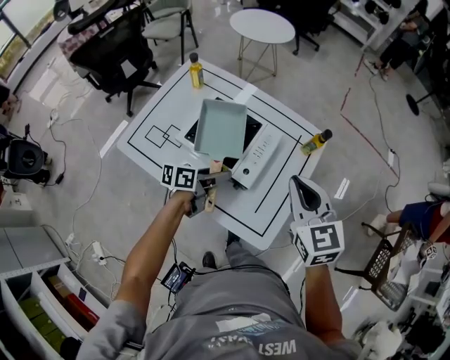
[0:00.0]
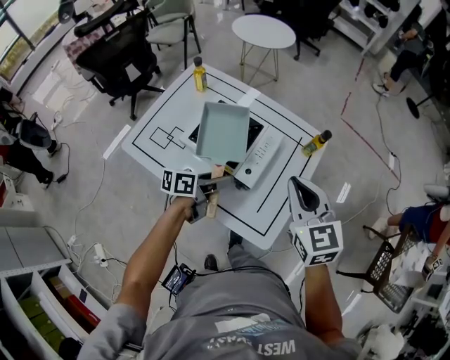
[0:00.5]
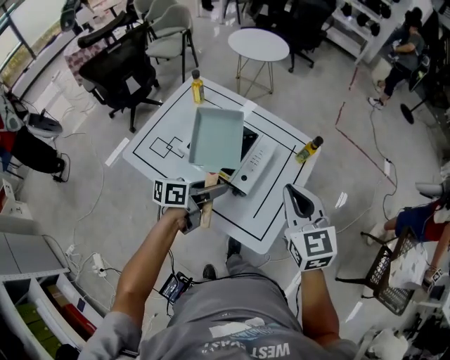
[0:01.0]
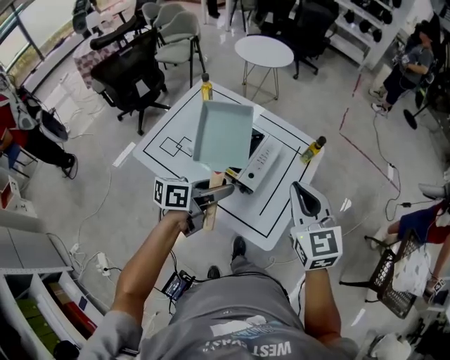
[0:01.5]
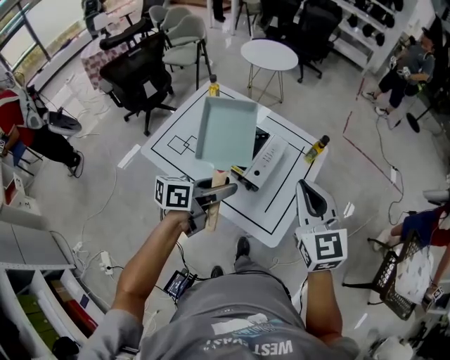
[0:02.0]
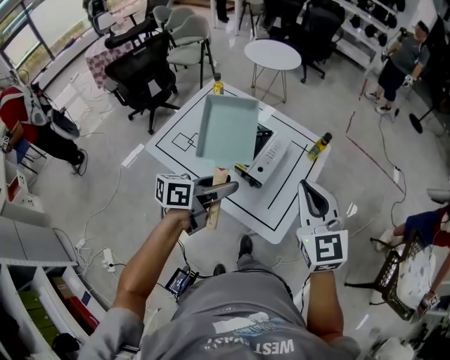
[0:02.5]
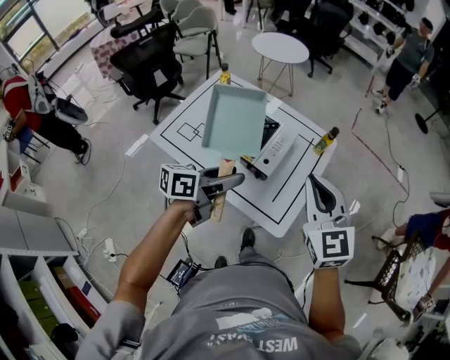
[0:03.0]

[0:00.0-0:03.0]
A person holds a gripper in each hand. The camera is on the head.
0:00.0 to 0:01.5: The left gripper travels upward and backward by some 15 cm, while the right gripper travels backward and upward by some 10 cm.
0:01.5 to 0:03.0: The right gripper shifts by approximately 5 cm, while the left gripper changes place by about 5 cm.

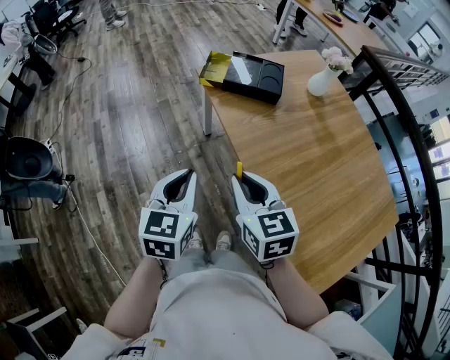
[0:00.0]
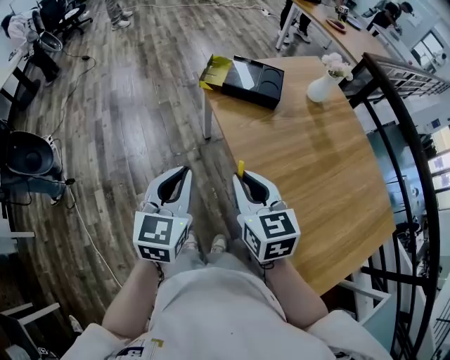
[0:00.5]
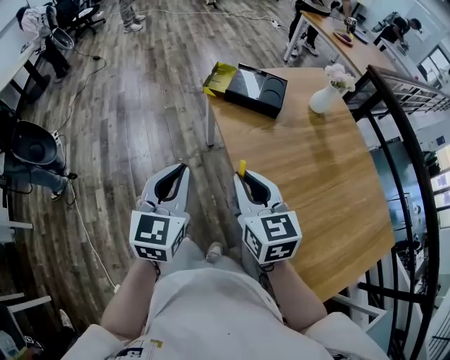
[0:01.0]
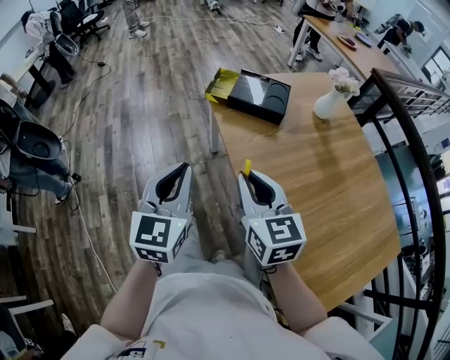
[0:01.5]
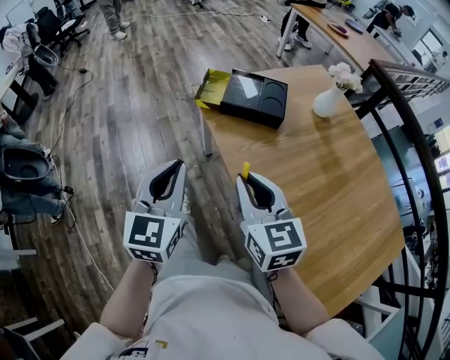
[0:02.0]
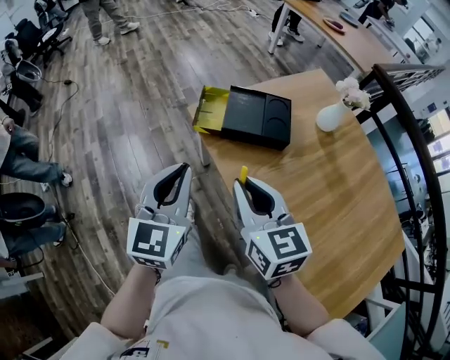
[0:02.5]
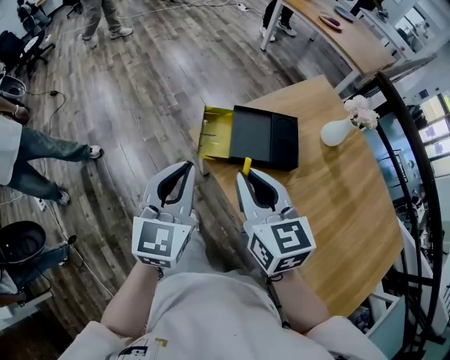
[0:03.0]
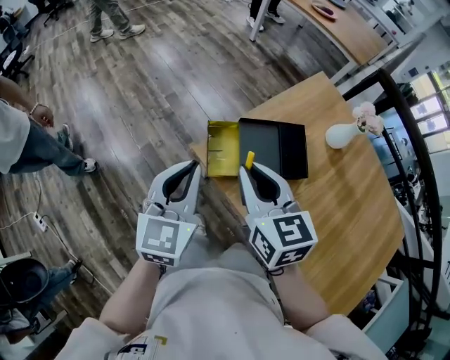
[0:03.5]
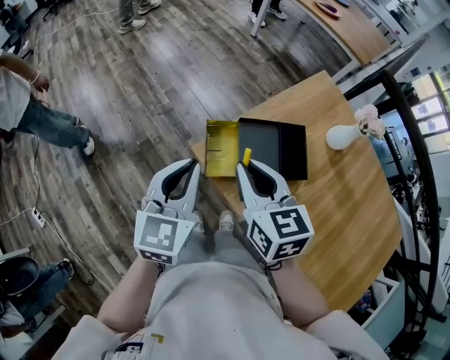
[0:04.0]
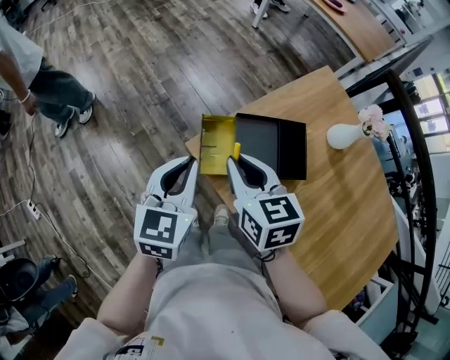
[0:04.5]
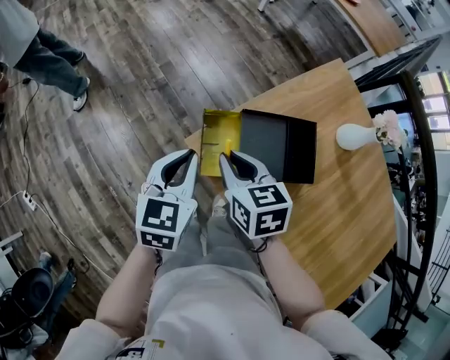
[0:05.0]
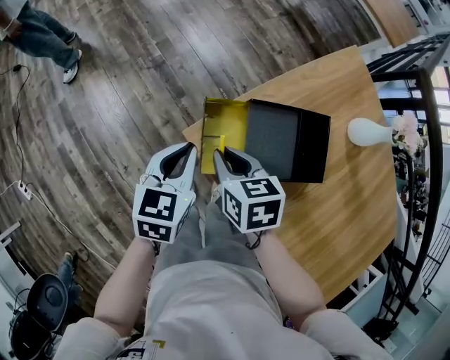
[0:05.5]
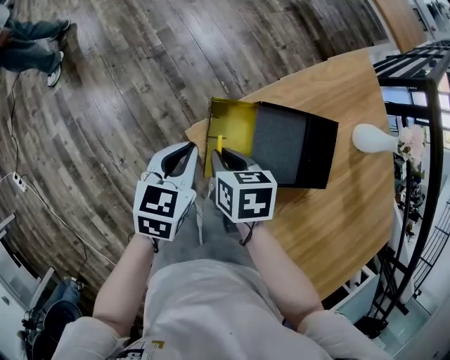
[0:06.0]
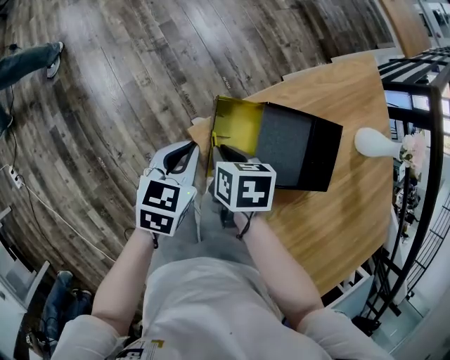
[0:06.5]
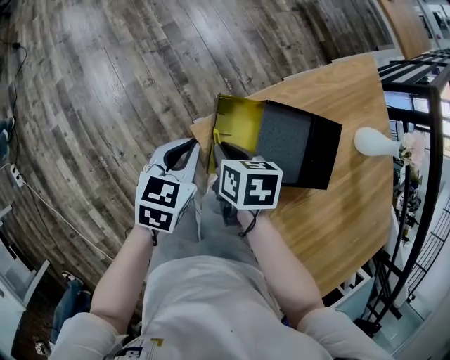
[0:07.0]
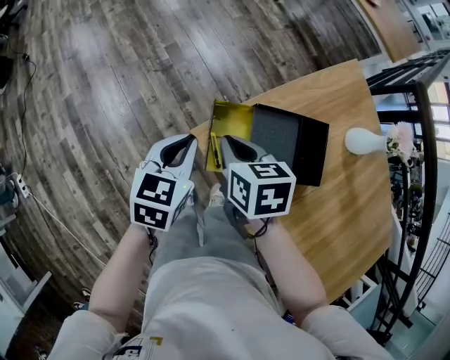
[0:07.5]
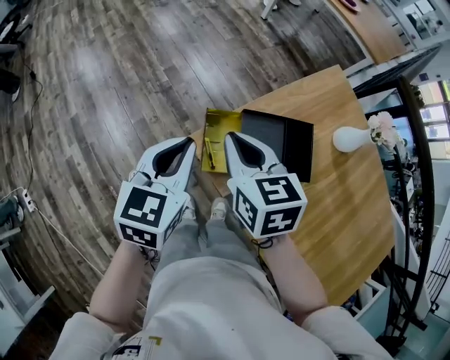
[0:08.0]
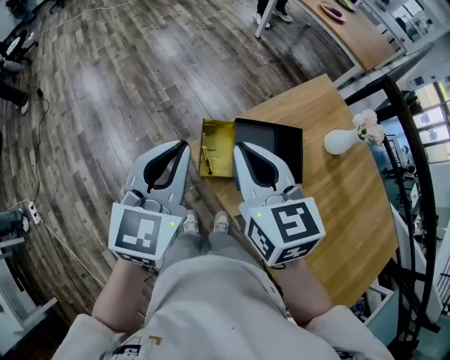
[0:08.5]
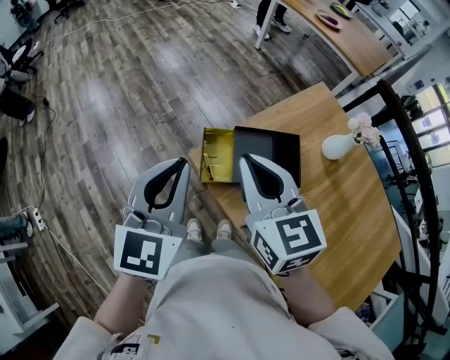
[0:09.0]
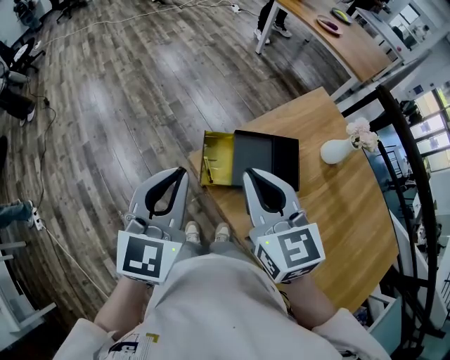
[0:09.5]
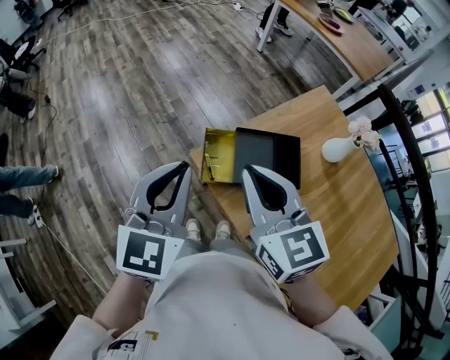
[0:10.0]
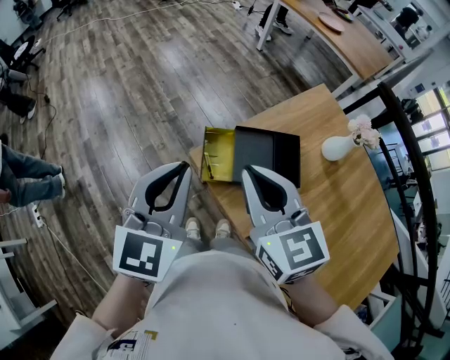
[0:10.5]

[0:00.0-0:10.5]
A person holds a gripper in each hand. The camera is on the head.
0:00.0 to 0:02.0: The two grippers go approximately 10 cm forward.
0:02.0 to 0:04.0: Both grippers are carried forward, about 40 cm. The left gripper rotates roughly 20 degrees.
0:04.0 to 0:06.5: The grippers both shift downward by about 30 cm. The right gripper tilts its fingers about 40 degrees downward. Meanwhile the left gripper changes its angle by approximately 30 degrees.
0:06.5 to 0:08.5: The grippers both shift upward by about 35 cm. The right gripper points its fingers roughly 40 degrees further upward. The left gripper turns by about 30 degrees.
0:08.5 to 0:10.5: The left gripper shifts by roughly 5 cm; the right gripper moves backward, some 5 cm.

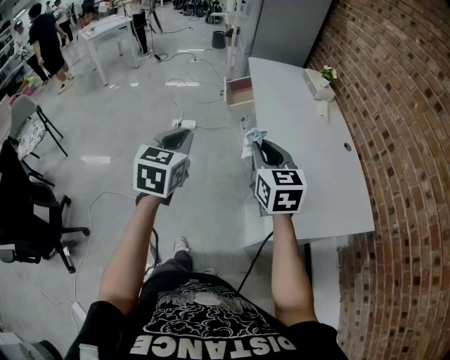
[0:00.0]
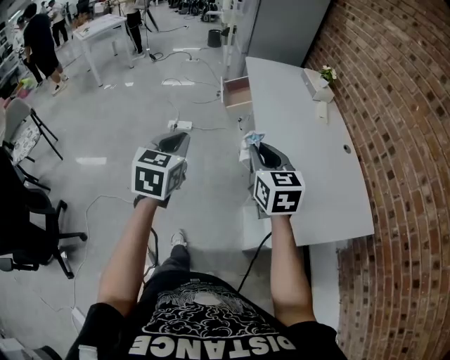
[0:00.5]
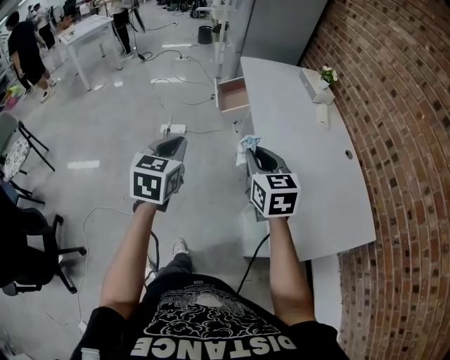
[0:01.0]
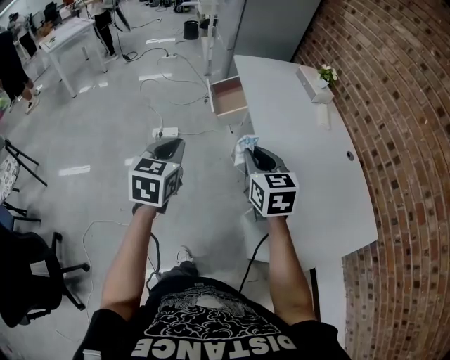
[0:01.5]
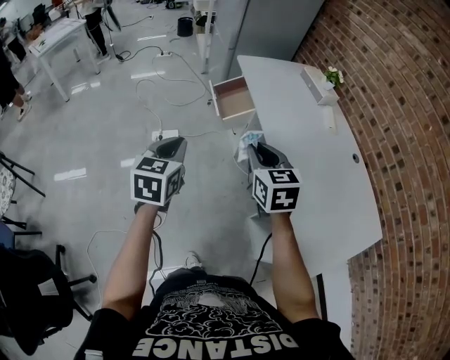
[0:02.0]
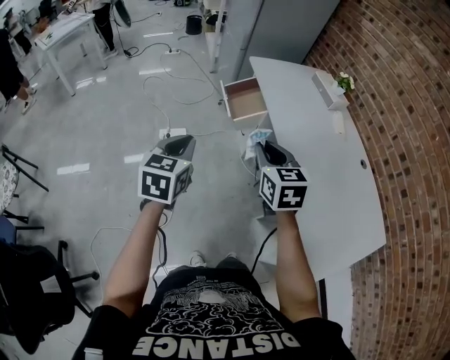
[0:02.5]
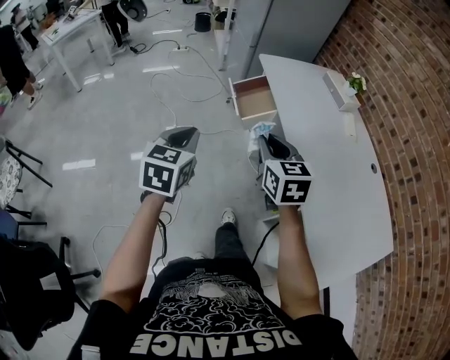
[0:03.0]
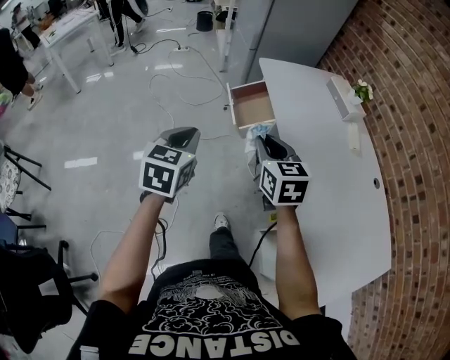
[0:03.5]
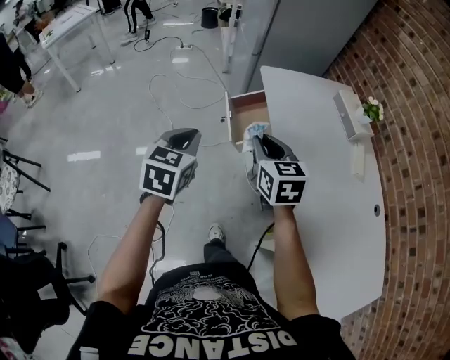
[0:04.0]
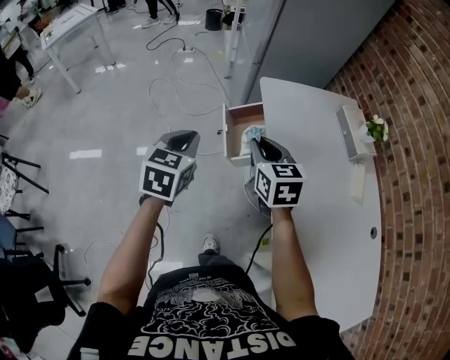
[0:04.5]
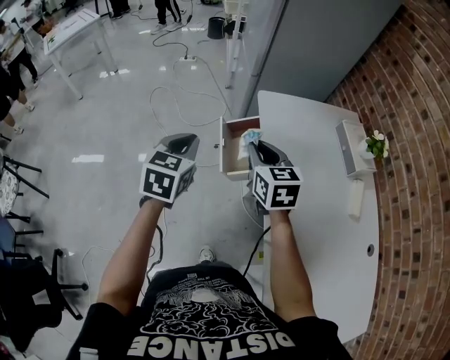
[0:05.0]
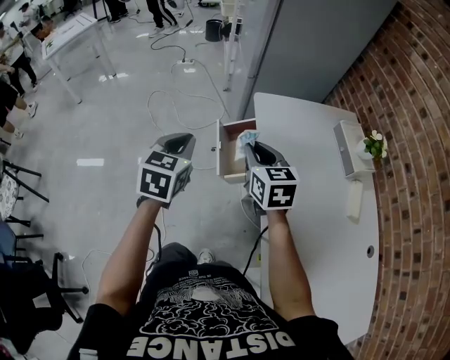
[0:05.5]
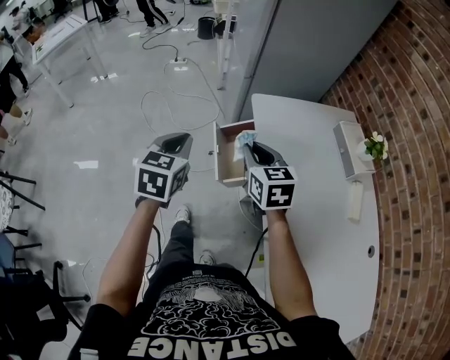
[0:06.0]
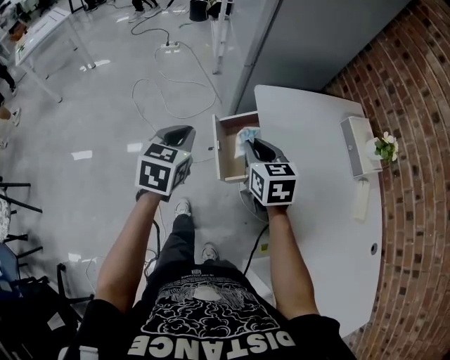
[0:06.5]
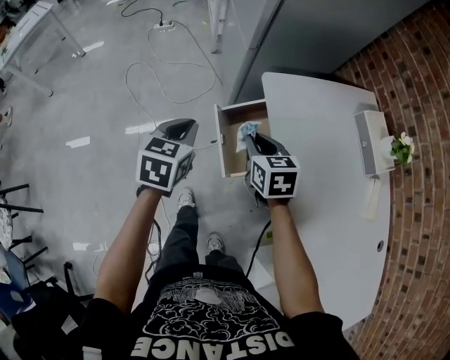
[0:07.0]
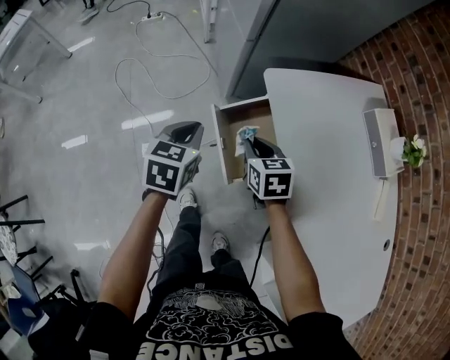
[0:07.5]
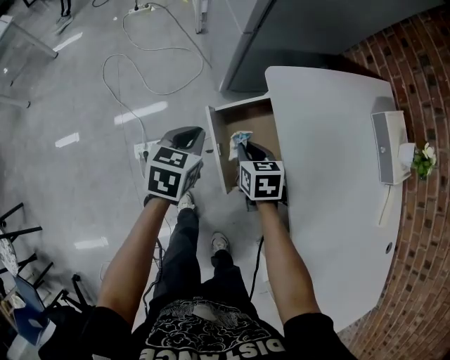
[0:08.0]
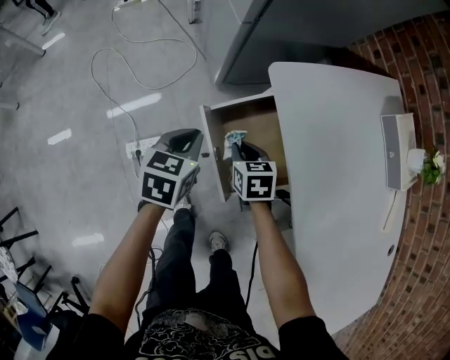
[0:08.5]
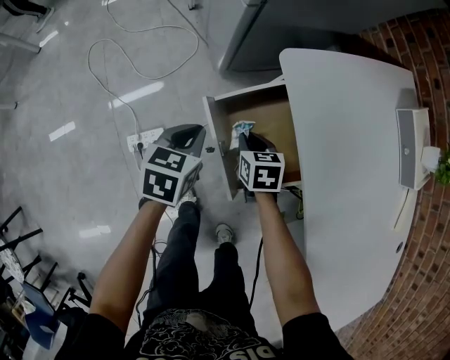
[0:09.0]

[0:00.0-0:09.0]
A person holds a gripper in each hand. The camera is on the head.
0:00.0 to 0:02.0: Both grippers move forward and to the left, roughly 25 cm.
0:02.0 to 0:04.5: The two grippers go some 30 cm forward.
0:04.5 to 0:07.0: The grippers both shift forward and downward by approximately 25 cm.
0:07.0 to 0:09.0: The left gripper moves downward and forward, approximately 25 cm. Meanwhile the right gripper goes approximately 25 cm downward, and changes its angle by approximately 20 degrees.

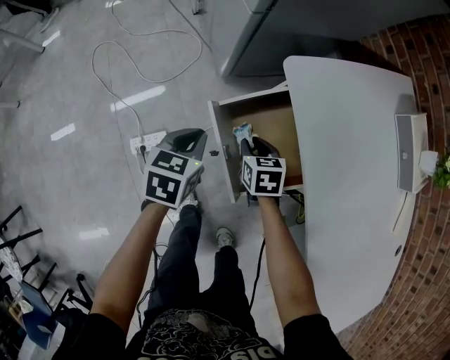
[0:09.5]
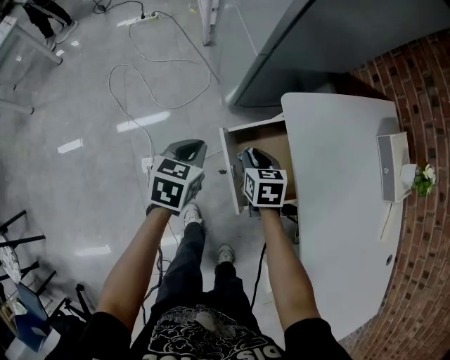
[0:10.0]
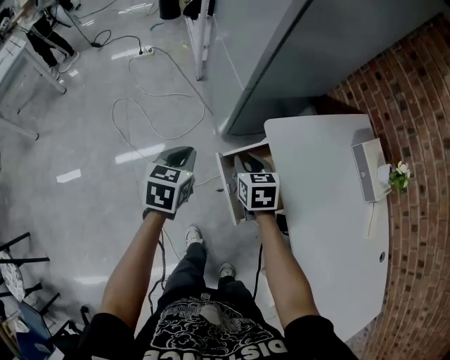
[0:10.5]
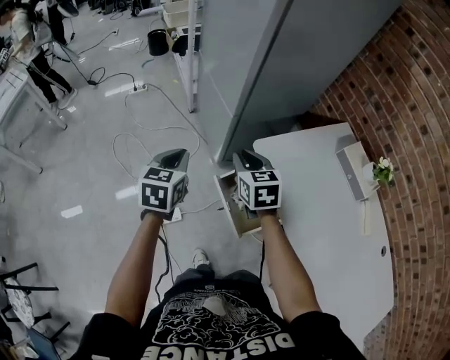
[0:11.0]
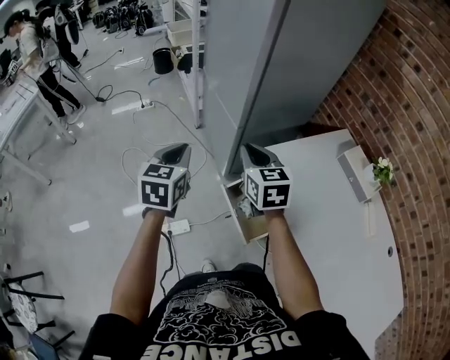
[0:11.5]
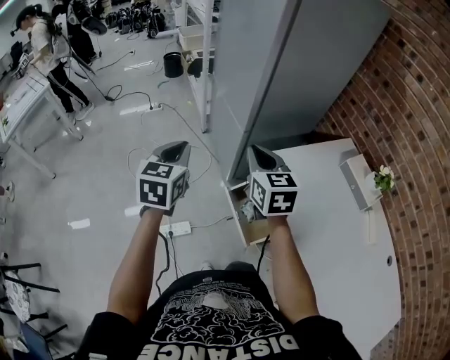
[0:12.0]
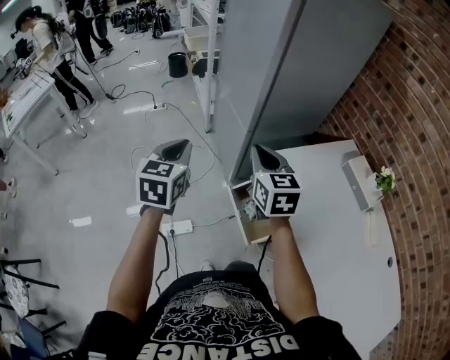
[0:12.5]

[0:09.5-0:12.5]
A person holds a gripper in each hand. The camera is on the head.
0:09.5 to 0:11.0: The right gripper heads upward, covering some 35 cm, and rotates approximately 30 degrees. Meanwhile the left gripper heads upward and to the left, covering approximately 30 cm.
0:11.0 to 0:12.5: The two grippers go approximately 10 cm upward.

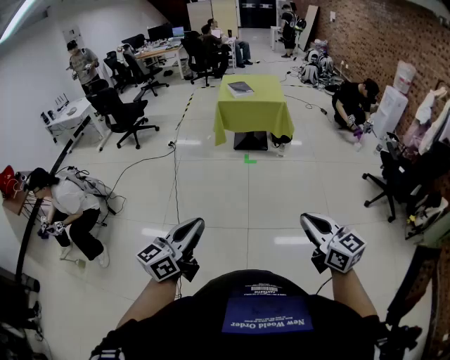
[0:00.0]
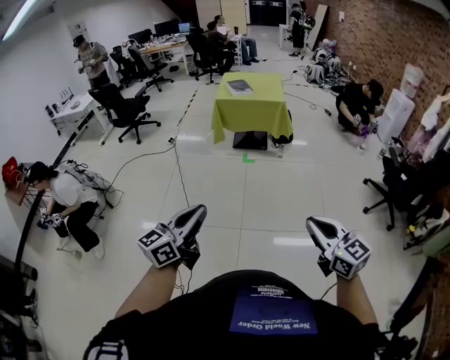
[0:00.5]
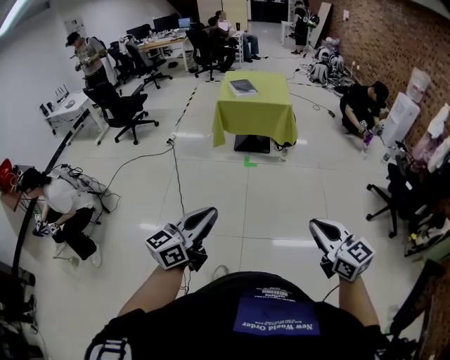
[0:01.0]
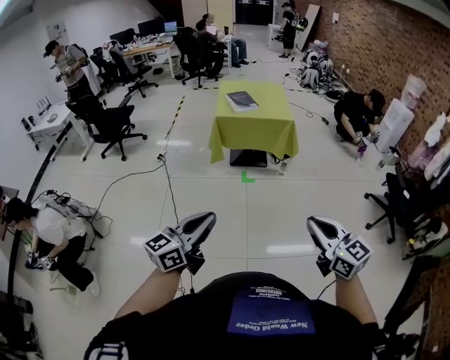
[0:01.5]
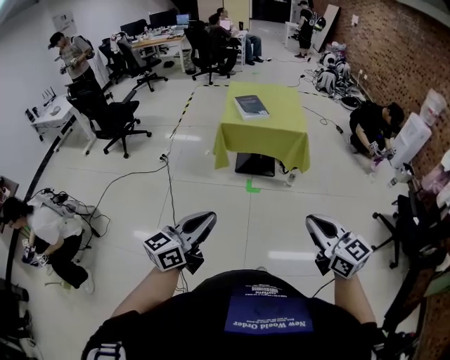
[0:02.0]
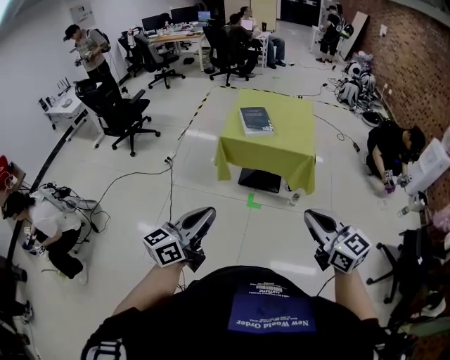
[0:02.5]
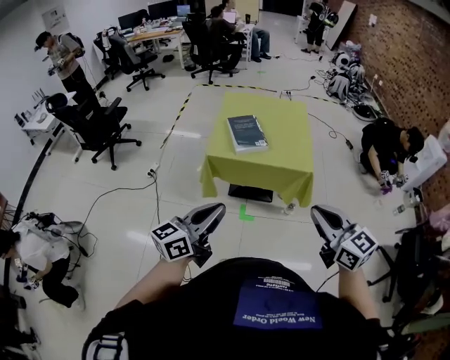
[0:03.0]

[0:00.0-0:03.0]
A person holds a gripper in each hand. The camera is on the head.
0:00.0 to 0:01.5: Both grippers move forward, roughly 30 cm.
0:01.5 to 0:03.0: Both grippers are carried forward, approximately 60 cm.
